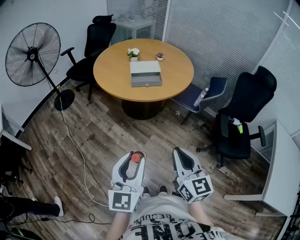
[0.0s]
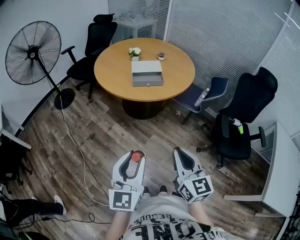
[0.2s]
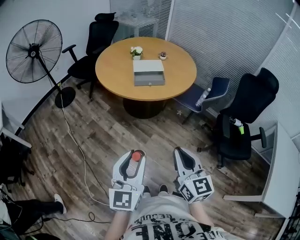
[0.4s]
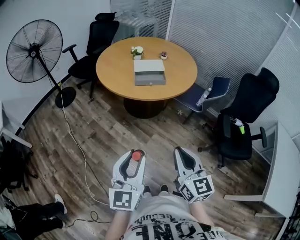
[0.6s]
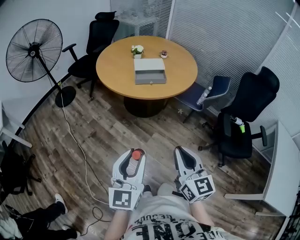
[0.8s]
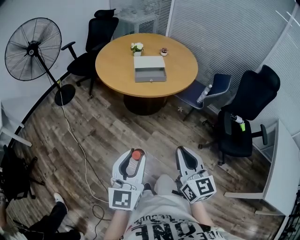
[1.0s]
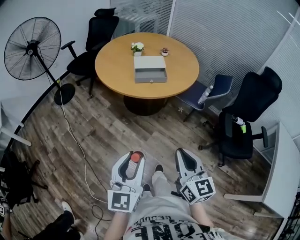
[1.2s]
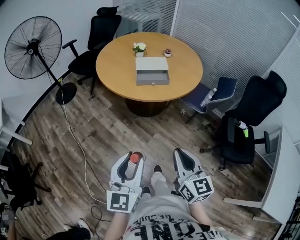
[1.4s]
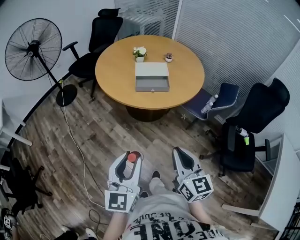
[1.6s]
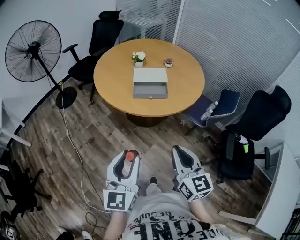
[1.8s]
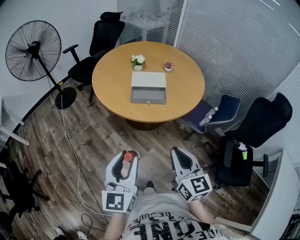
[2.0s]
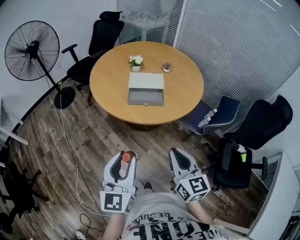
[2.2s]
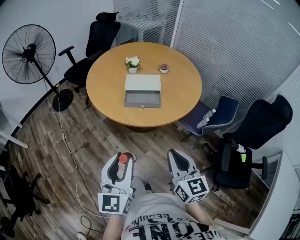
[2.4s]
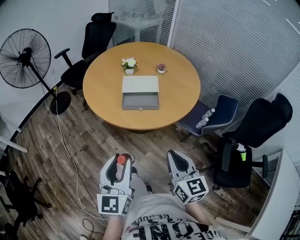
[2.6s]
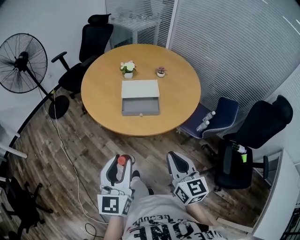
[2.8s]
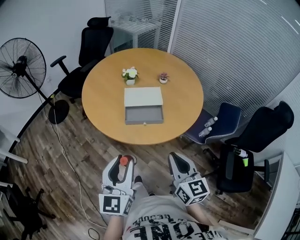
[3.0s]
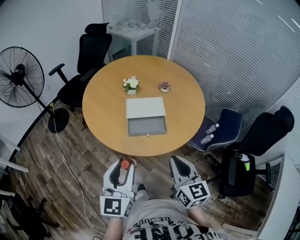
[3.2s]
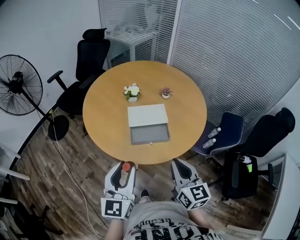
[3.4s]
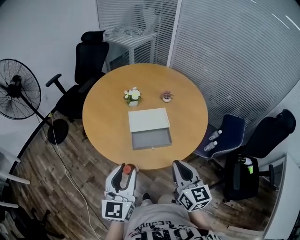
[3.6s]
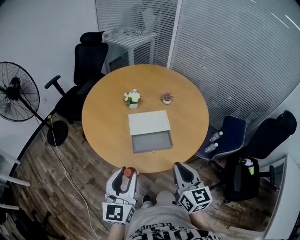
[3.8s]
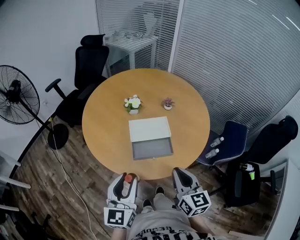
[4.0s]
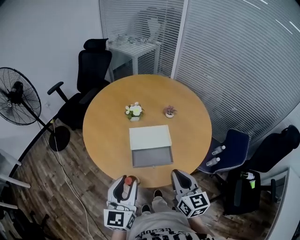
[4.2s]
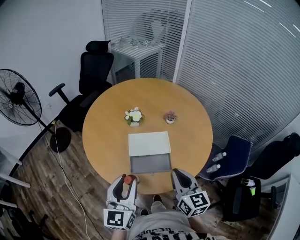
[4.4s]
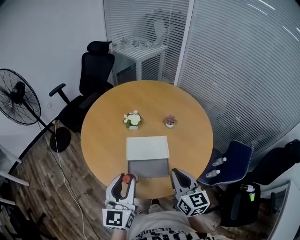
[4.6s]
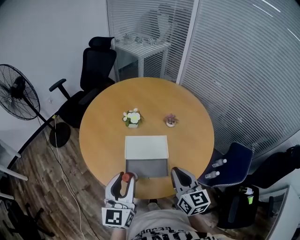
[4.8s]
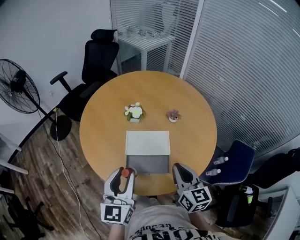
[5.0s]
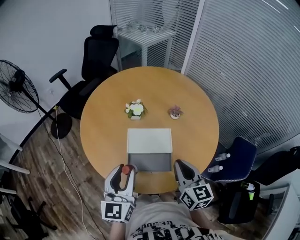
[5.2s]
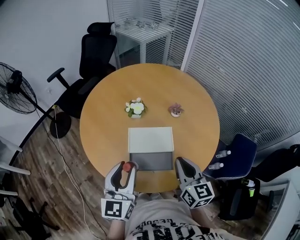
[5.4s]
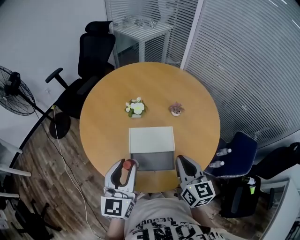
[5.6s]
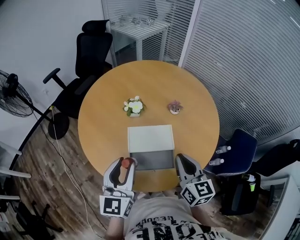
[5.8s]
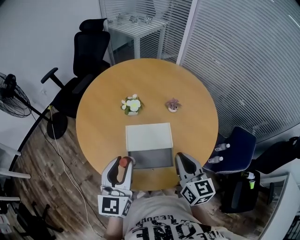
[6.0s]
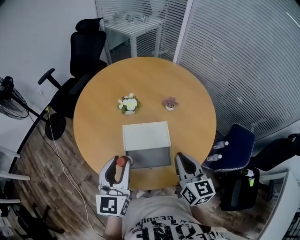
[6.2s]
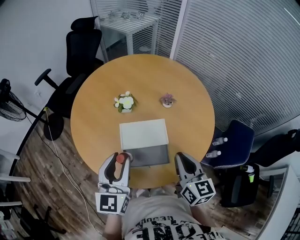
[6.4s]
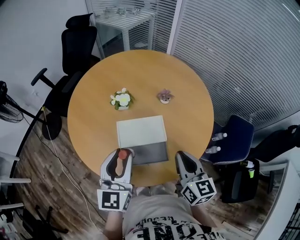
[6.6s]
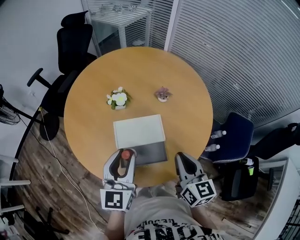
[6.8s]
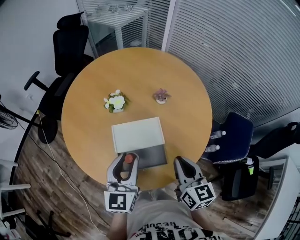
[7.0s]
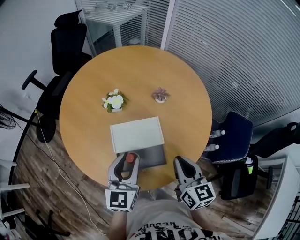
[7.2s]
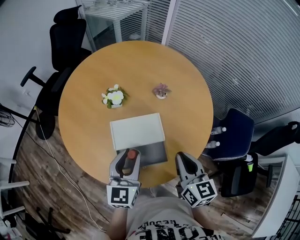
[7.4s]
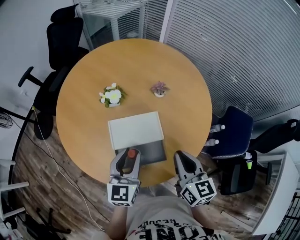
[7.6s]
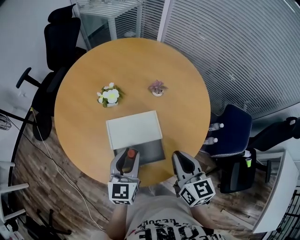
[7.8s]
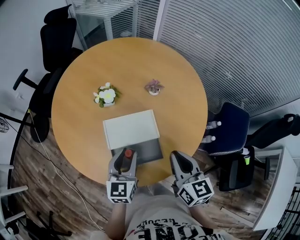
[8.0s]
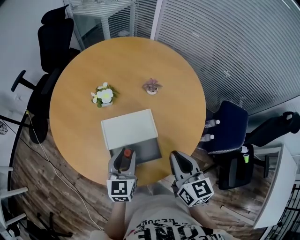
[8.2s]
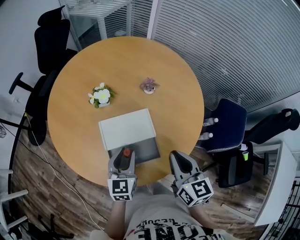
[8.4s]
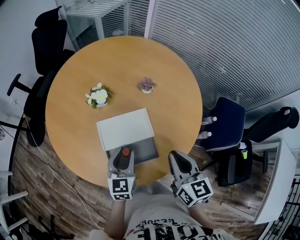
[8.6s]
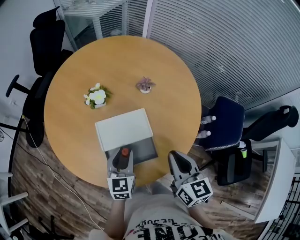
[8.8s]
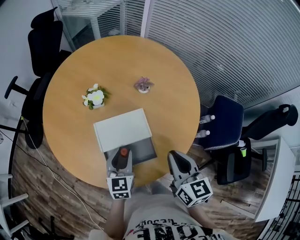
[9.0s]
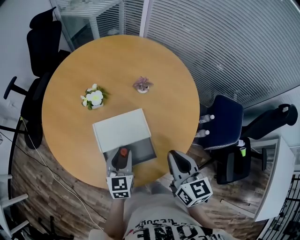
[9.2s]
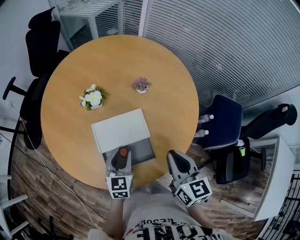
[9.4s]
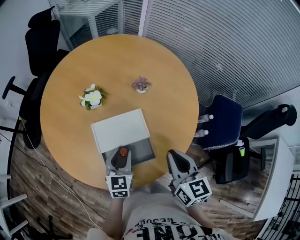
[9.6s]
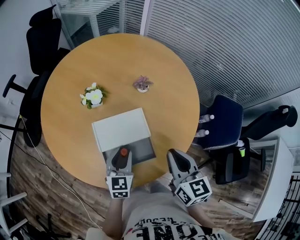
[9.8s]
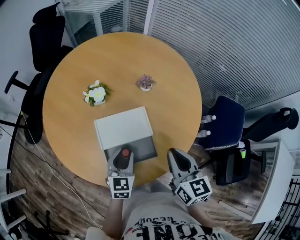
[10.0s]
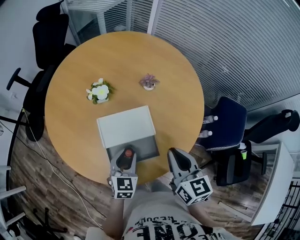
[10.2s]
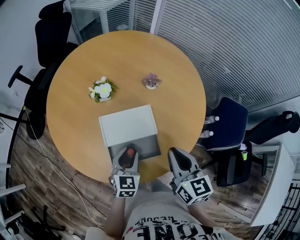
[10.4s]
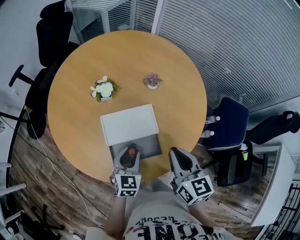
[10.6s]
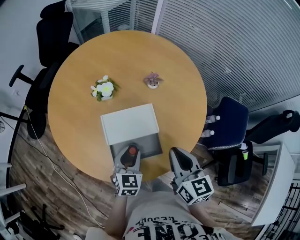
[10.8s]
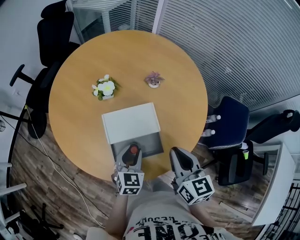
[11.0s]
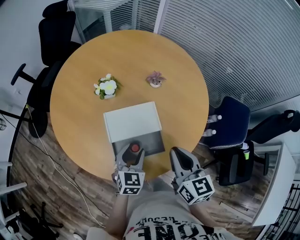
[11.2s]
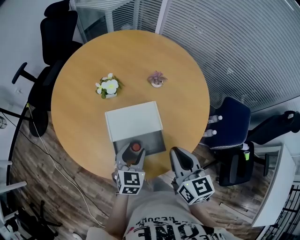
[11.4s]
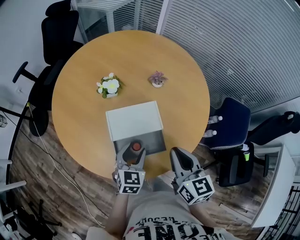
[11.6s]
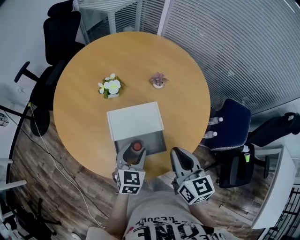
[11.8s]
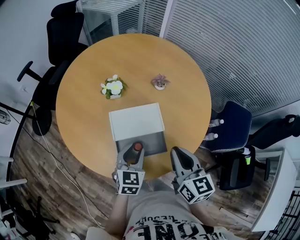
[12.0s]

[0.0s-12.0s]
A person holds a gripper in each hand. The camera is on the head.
0.0s to 1.6s: Both grippers move forward, roughly 10 cm.
1.6s to 3.0s: Both grippers move forward, approximately 20 cm.
3.0s to 4.4s: Both grippers travel together forward, some 20 cm.
4.4s to 6.0s: Both grippers travel together forward, roughly 10 cm.
6.0s to 7.6s: The right gripper shifts by roughly 5 cm; the left gripper is displaced downward, to the right and forward by some 15 cm.
7.6s to 9.0s: The left gripper is displaced downward by roughly 10 cm.
9.0s to 12.0s: The grippers move only a little.

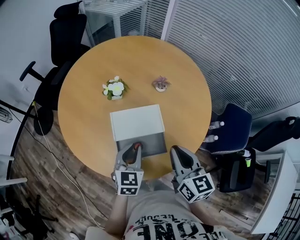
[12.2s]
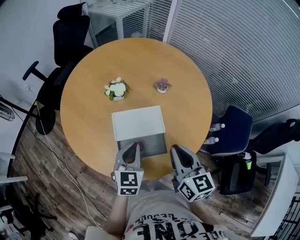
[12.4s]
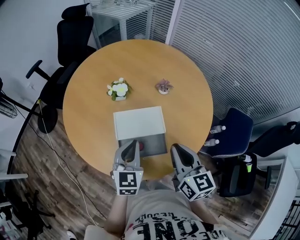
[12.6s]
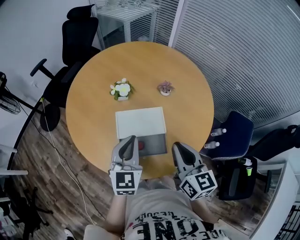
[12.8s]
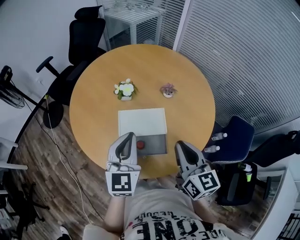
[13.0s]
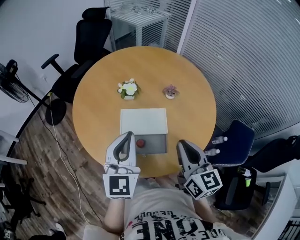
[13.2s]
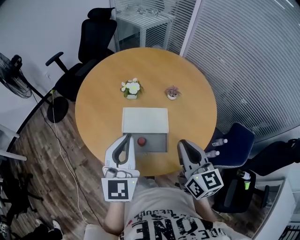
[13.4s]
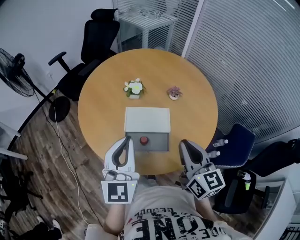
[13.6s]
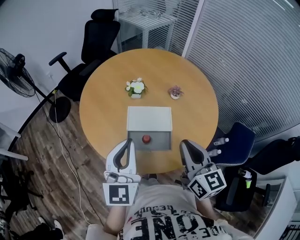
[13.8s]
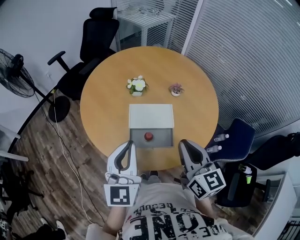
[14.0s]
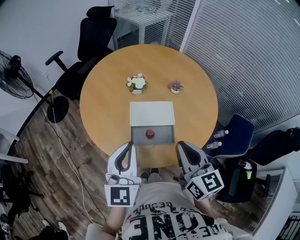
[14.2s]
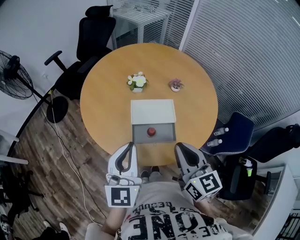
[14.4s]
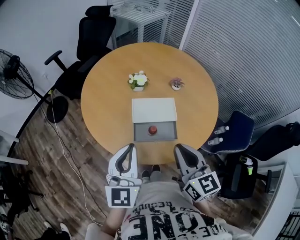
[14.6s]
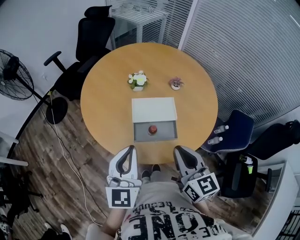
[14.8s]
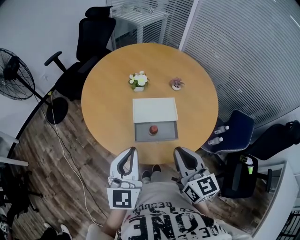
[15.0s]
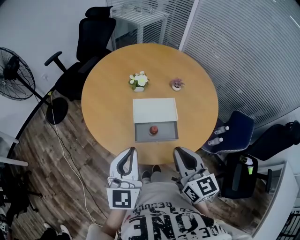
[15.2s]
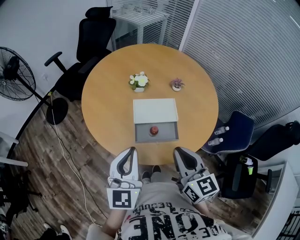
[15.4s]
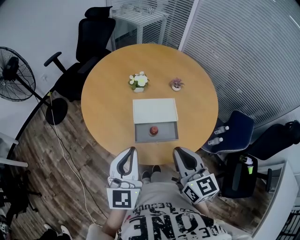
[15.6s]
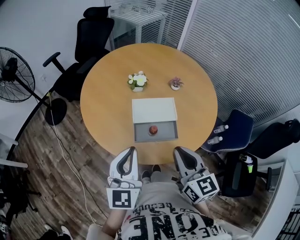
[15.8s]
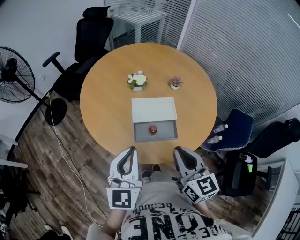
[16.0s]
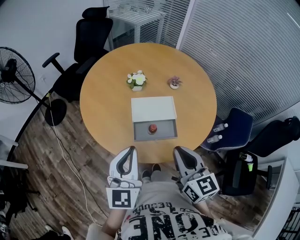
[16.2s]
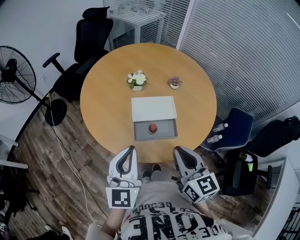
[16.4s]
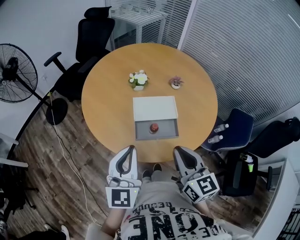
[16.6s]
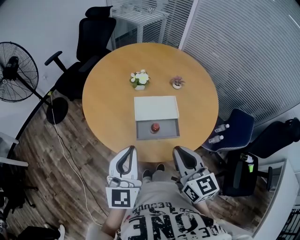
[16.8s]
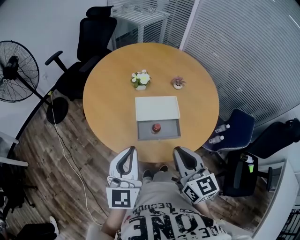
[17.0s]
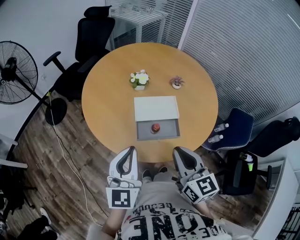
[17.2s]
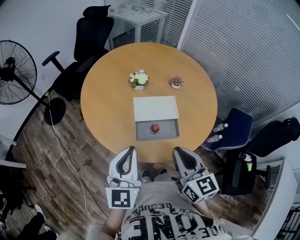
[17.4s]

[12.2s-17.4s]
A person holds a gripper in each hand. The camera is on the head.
12.2s to 14.0s: The right gripper heads upward, covering approximately 10 cm; the left gripper heads upward and backward, covering some 20 cm, and swivels approximately 30 degrees.
14.0s to 15.6s: The right gripper travels to the left by some 5 cm. The left gripper ends up some 5 cm from where it was.
15.6s to 17.4s: The grippers stay close to where they were, moving slightly.

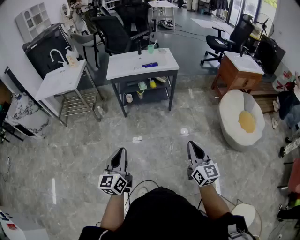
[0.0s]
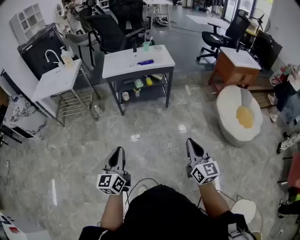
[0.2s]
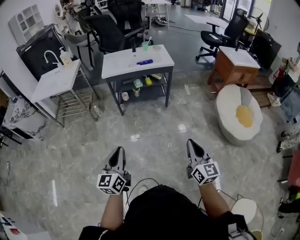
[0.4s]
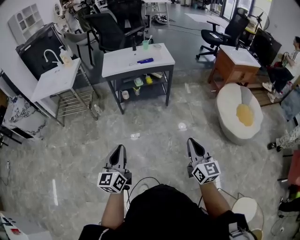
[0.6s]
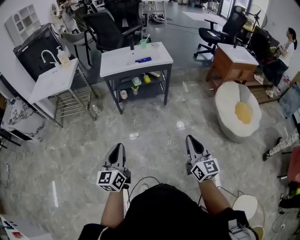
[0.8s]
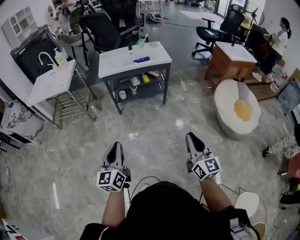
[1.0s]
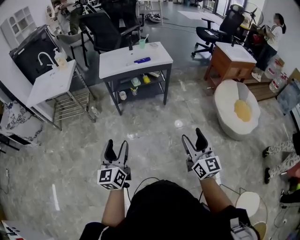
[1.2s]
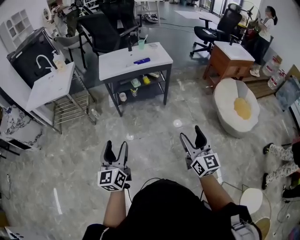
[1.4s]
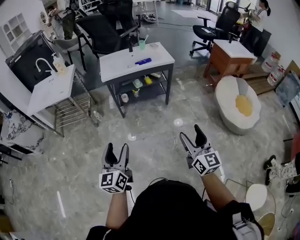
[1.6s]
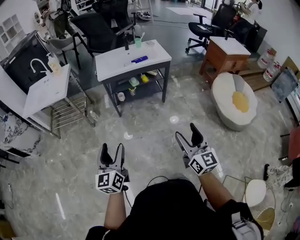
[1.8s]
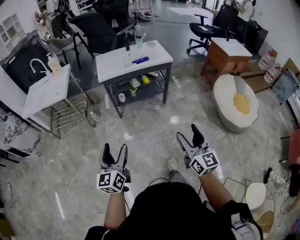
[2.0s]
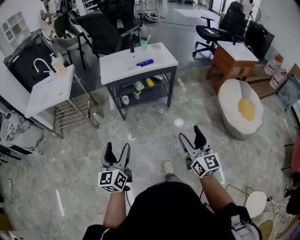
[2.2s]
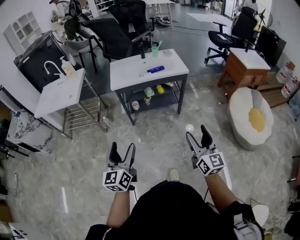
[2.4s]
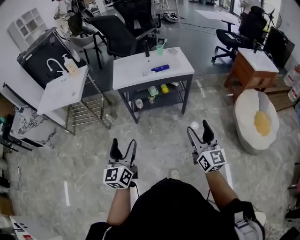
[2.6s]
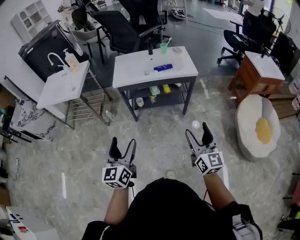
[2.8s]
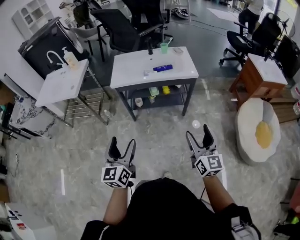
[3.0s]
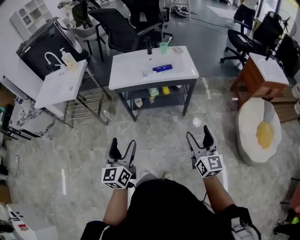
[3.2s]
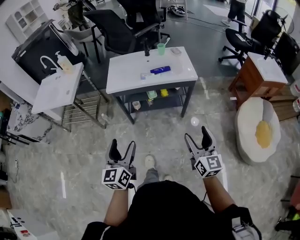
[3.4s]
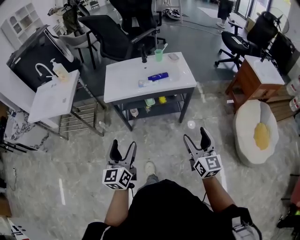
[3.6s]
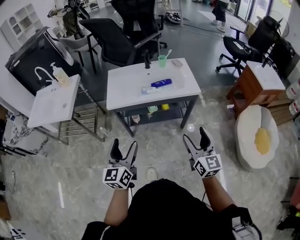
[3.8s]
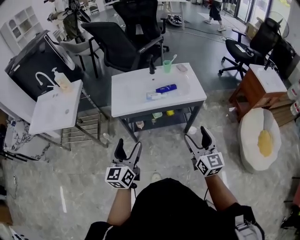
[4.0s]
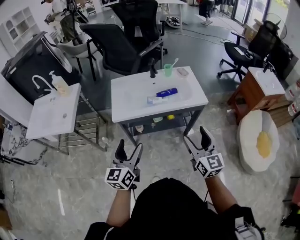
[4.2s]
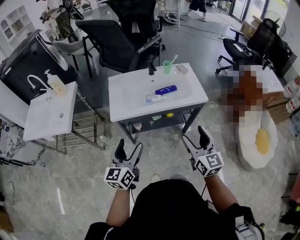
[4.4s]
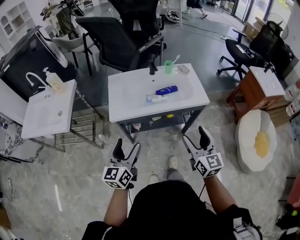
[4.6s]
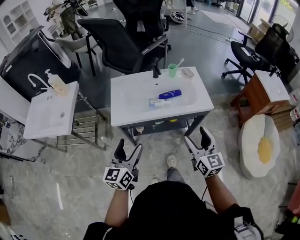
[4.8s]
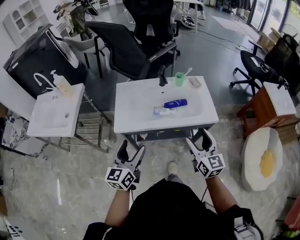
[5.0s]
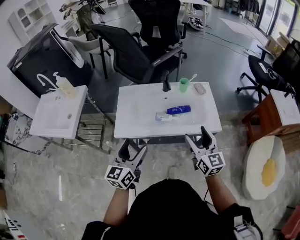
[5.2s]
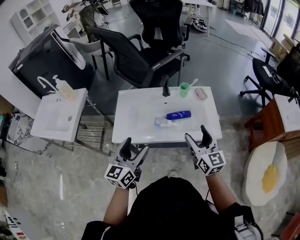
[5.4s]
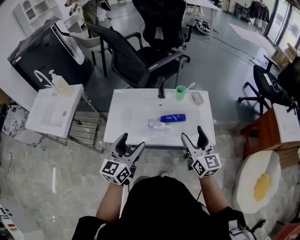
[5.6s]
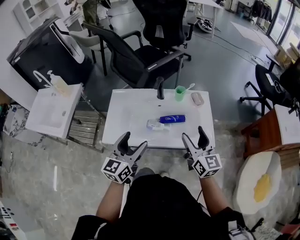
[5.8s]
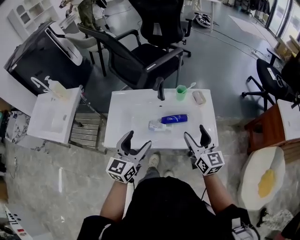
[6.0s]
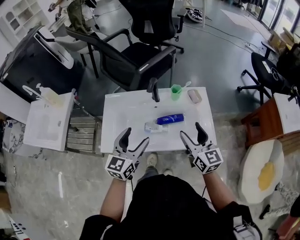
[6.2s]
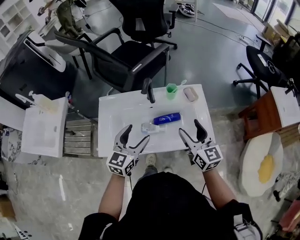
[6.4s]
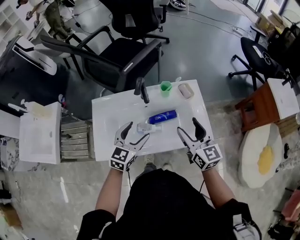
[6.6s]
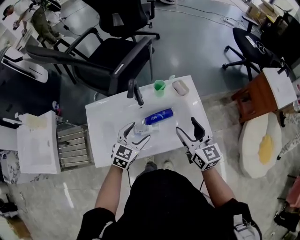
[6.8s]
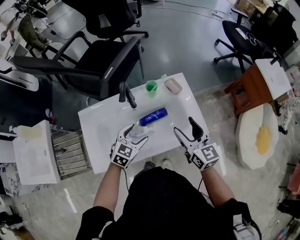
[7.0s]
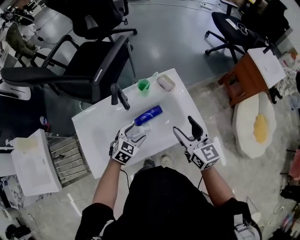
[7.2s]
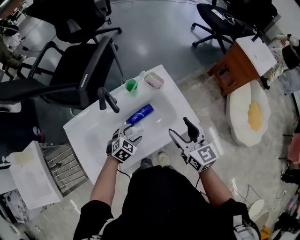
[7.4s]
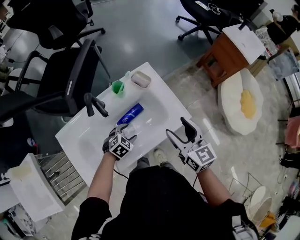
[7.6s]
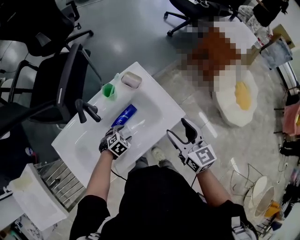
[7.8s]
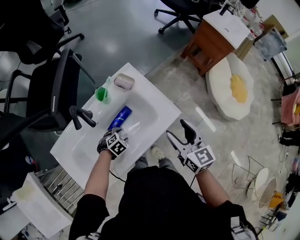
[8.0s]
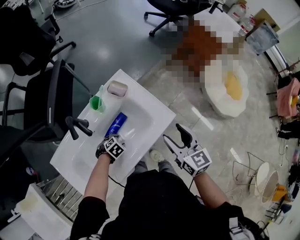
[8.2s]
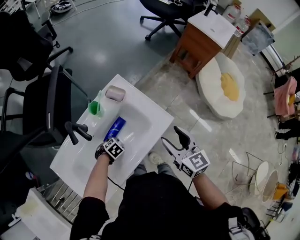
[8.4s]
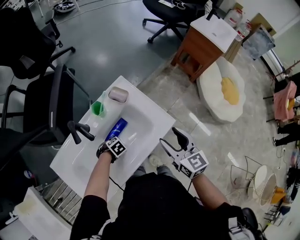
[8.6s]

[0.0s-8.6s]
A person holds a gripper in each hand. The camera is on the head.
0.0s to 1.4s: The right gripper heads to the left, covering approximately 5 cm, and opens its fingers. The left gripper shifts roughly 10 cm to the left and forward, and opens.
1.4s to 2.8s: The two grippers go about 20 cm forward.
2.8s to 4.4s: The grippers both shift forward by about 25 cm.
4.4s to 5.8s: The left gripper heads forward and to the right, covering roughly 25 cm. The right gripper heads forward, covering about 25 cm.
5.8s to 7.2s: The right gripper ends up roughly 10 cm from where it was, while the left gripper heads downward, covering some 20 cm, and angles its fingers downward, by some 40 degrees.
7.2s to 8.6s: The right gripper moves approximately 10 cm, and rotates about 20 degrees; the left gripper is displaced downward by roughly 15 cm, and rotates roughly 50 degrees.
